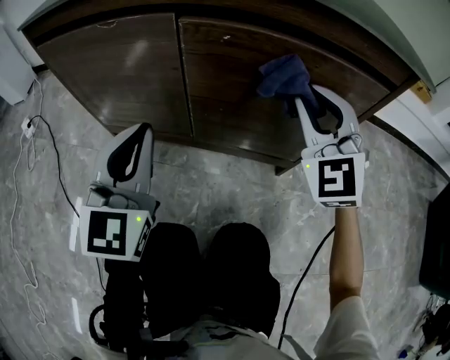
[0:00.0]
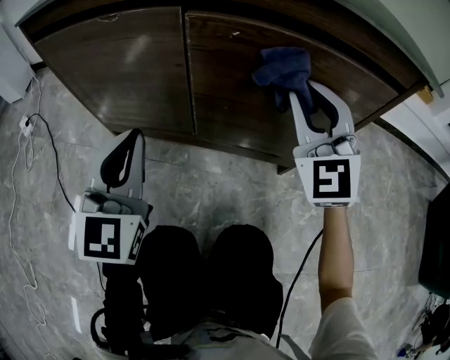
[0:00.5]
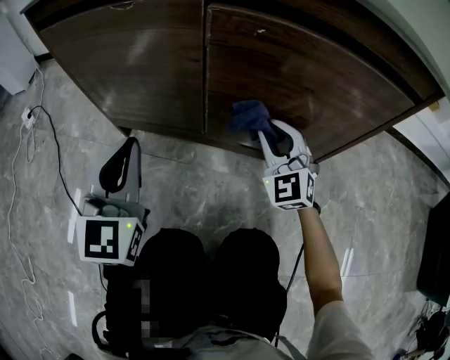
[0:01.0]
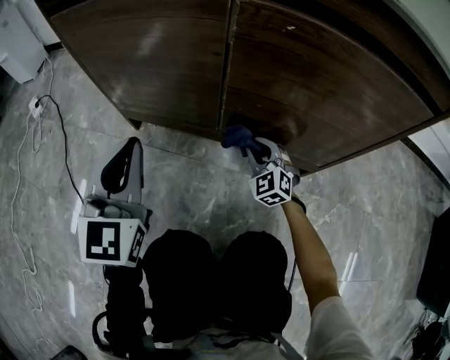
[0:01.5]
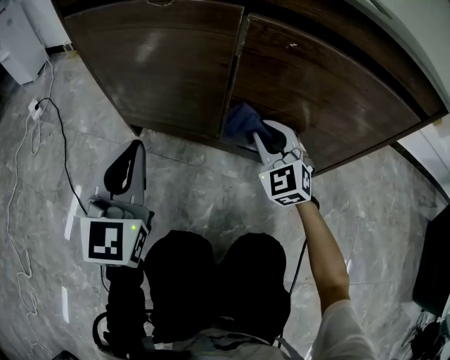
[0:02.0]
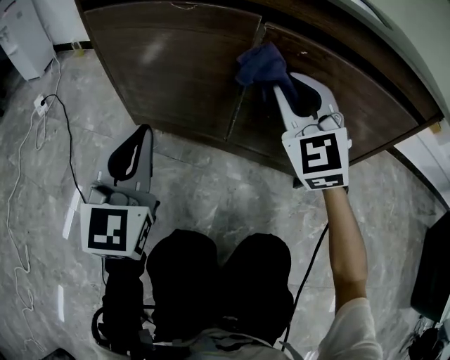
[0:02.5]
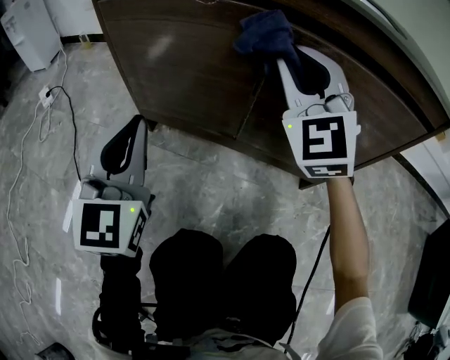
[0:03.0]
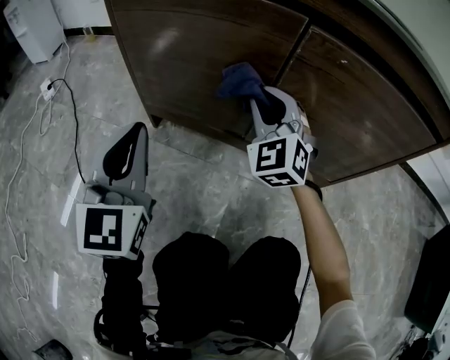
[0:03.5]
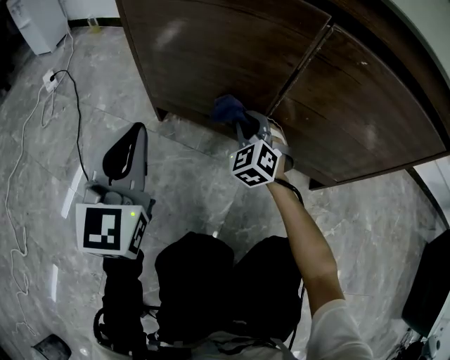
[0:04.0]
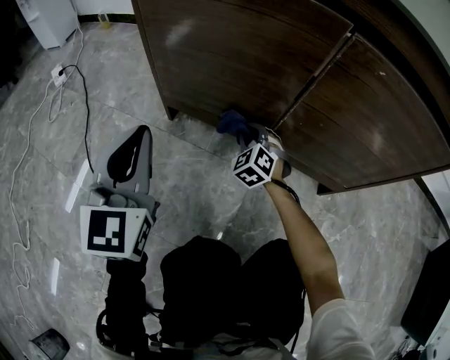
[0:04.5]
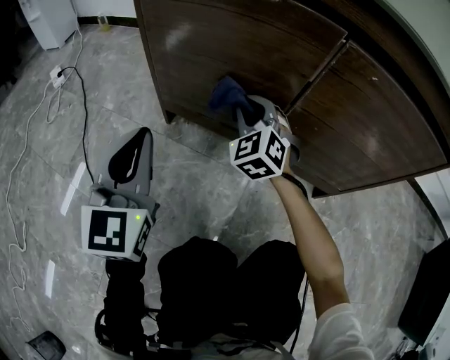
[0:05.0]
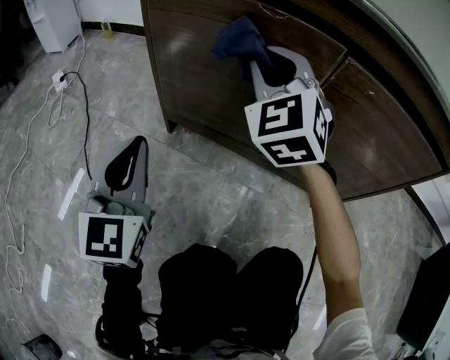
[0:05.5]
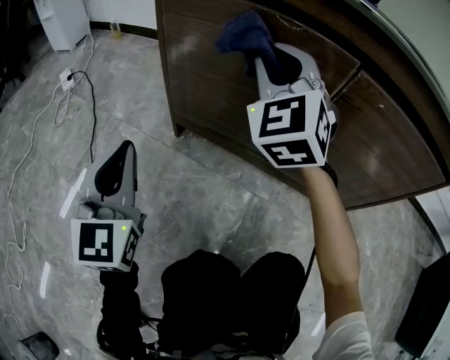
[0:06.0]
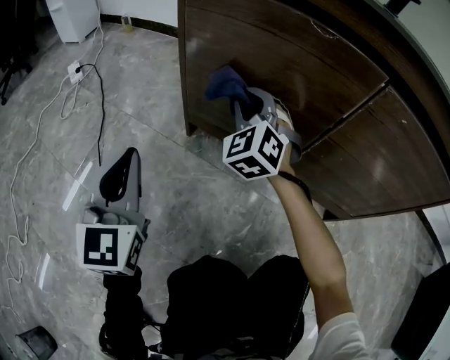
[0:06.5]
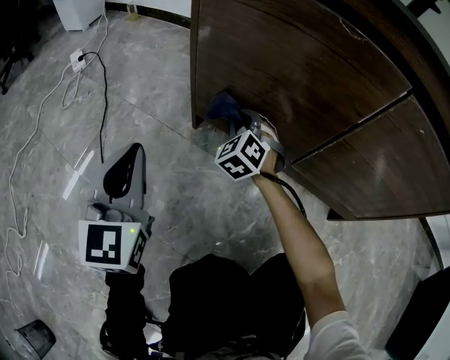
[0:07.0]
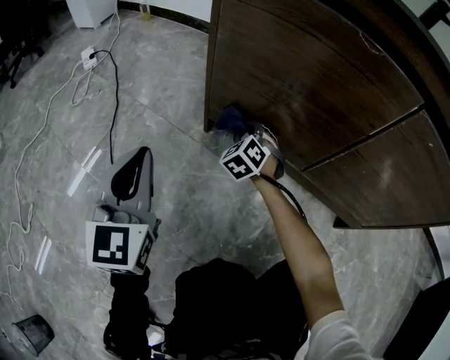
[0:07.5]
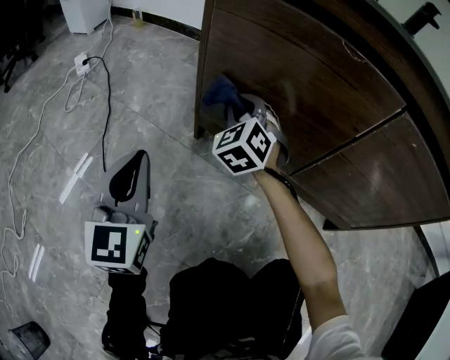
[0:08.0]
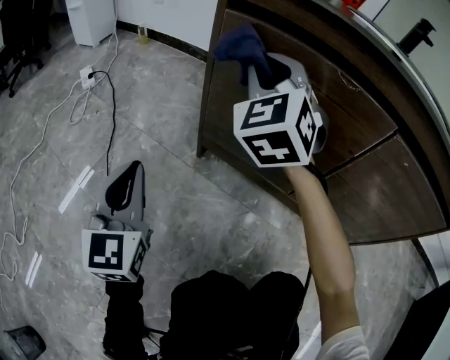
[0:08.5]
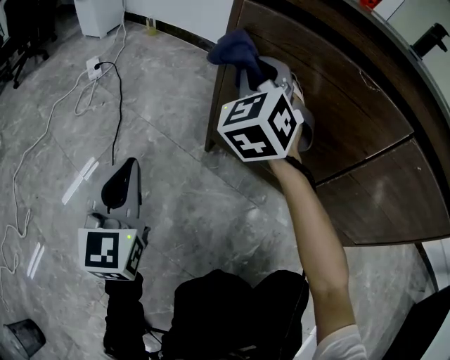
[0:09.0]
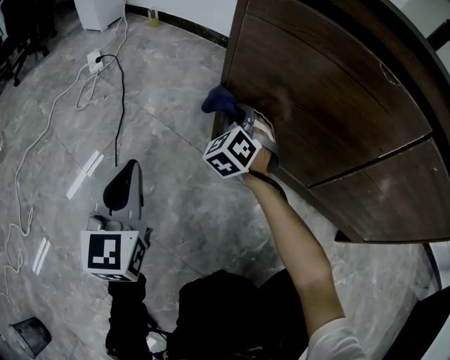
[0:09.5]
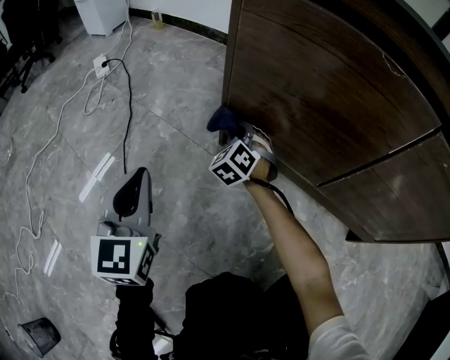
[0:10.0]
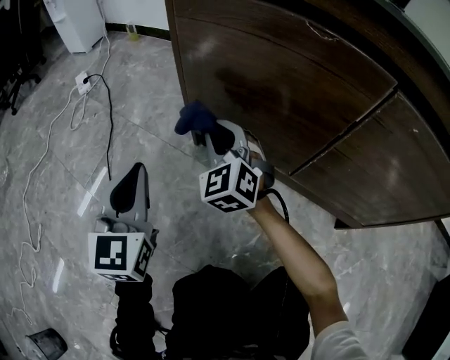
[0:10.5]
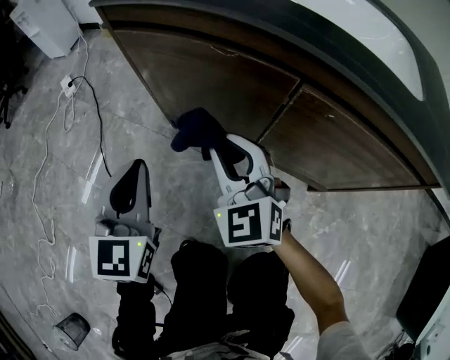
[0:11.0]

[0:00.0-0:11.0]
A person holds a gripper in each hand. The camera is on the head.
0:00.0 to 0:02.0: The right gripper travels downward and to the left by about 25 cm. Meanwhile the left gripper is displaced to the left and downward by approximately 10 cm.
0:02.0 to 0:03.5: The right gripper moves to the left, about 10 cm, and travels upward and back again, about 25 cm each way. The left gripper goes roughly 5 cm to the left.
0:03.5 to 0:05.5: The left gripper goes some 5 cm to the left; the right gripper moves to the left, approximately 10 cm, and goes downward and returns, about 25 cm each way.
0:05.5 to 0:07.5: The right gripper heads downward, covering approximately 35 cm, and changes its angle by some 30 degrees; the left gripper is displaced to the left and downward by approximately 10 cm.
0:07.5 to 0:09.0: The right gripper is displaced upward by some 30 cm, and swivels approximately 30 degrees.
0:09.0 to 0:11.0: The left gripper travels to the right and upward by approximately 20 cm, while the right gripper travels backward and to the right by roughly 25 cm, moves roughly 30 cm downward and comes back, and swivels about 20 degrees.

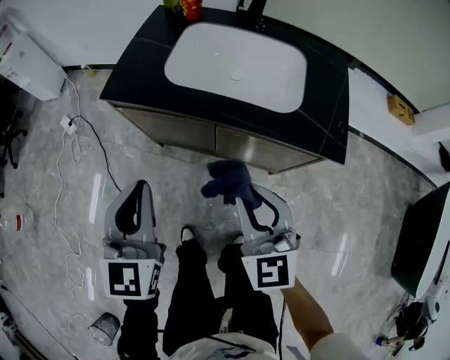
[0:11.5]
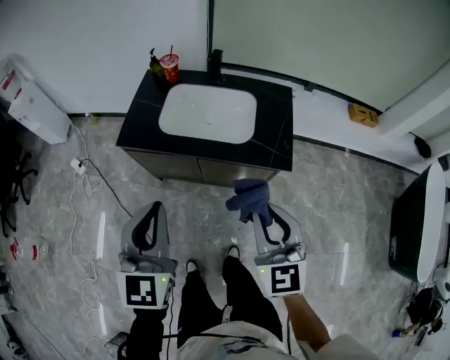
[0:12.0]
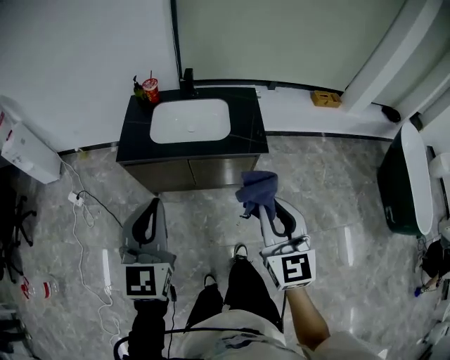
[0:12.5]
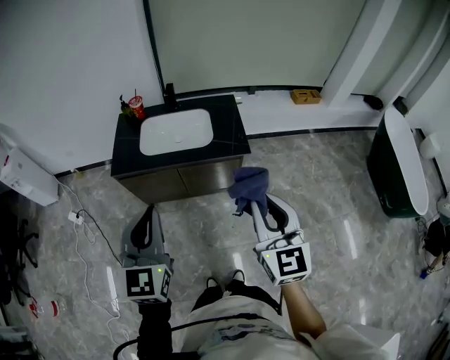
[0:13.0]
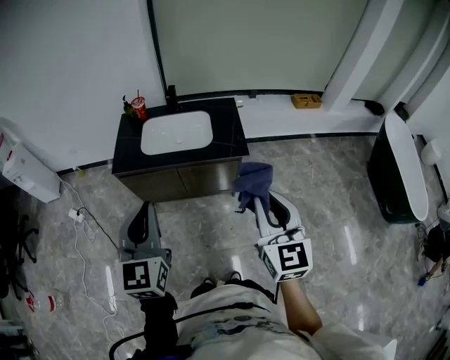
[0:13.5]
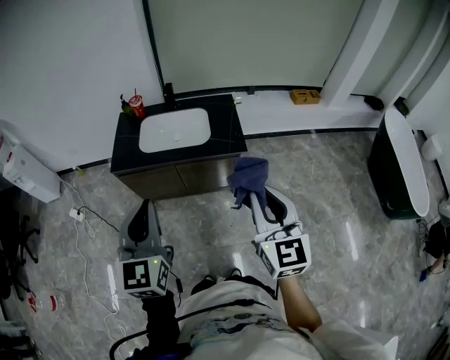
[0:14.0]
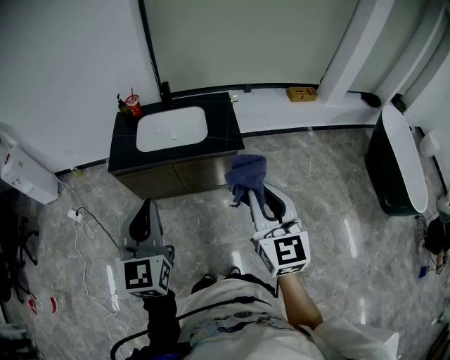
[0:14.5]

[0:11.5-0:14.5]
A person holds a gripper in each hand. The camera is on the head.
0:11.5 to 0:13.0: The right gripper moves upward, backward and to the right, approximately 40 cm, and swivels roughly 30 degrees; the left gripper moves upward and backward, approximately 35 cm, and turns by some 20 degrees.
0:13.0 to 0:14.5: The grippers stay close to where they were, moving slightly.

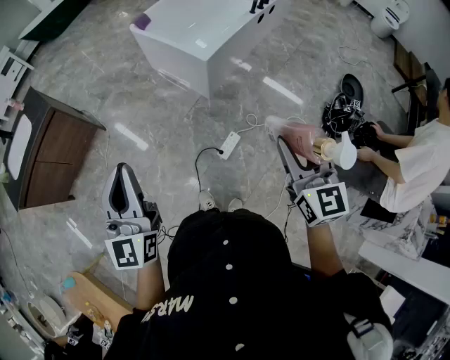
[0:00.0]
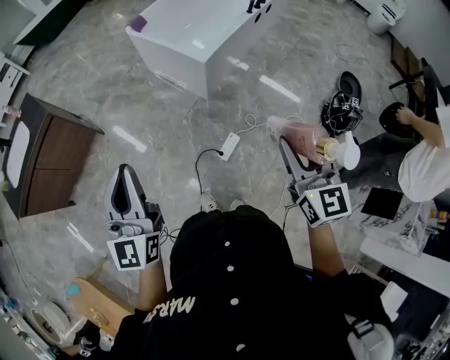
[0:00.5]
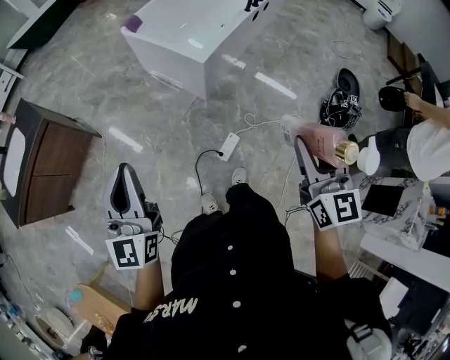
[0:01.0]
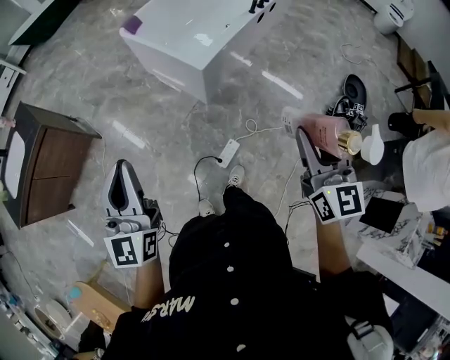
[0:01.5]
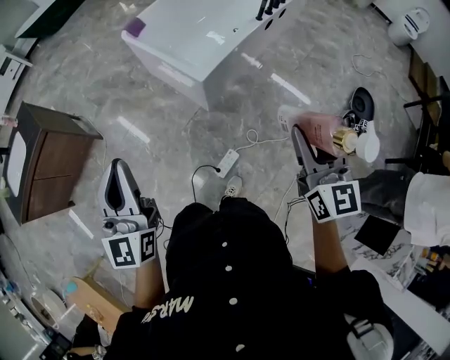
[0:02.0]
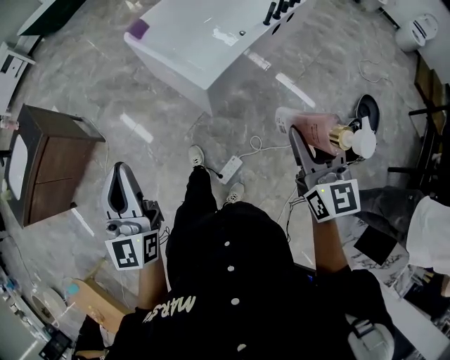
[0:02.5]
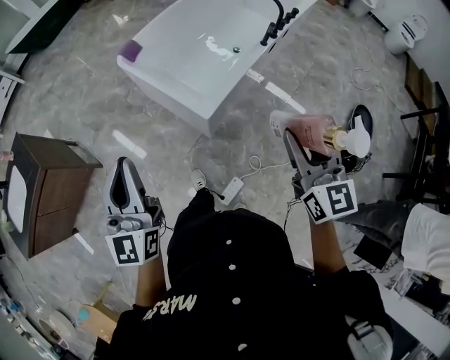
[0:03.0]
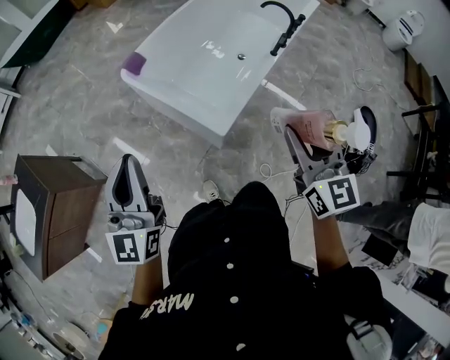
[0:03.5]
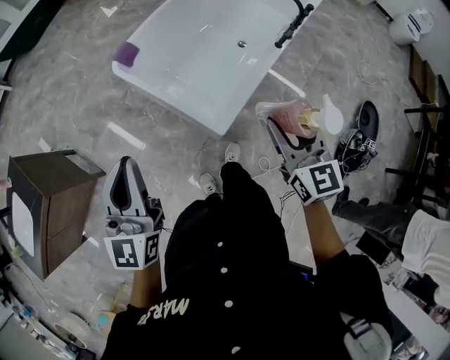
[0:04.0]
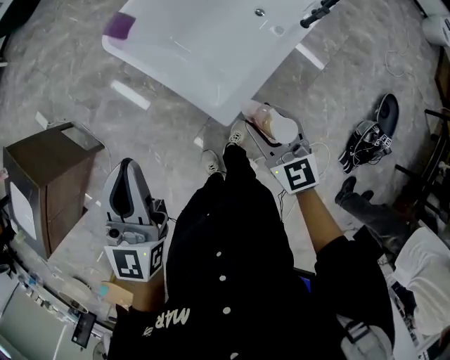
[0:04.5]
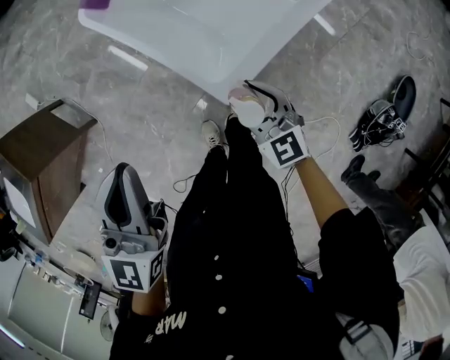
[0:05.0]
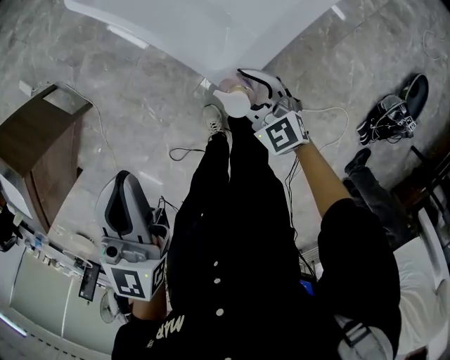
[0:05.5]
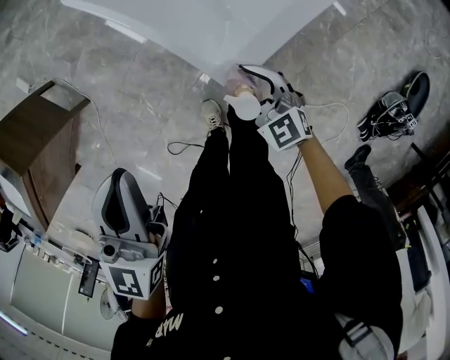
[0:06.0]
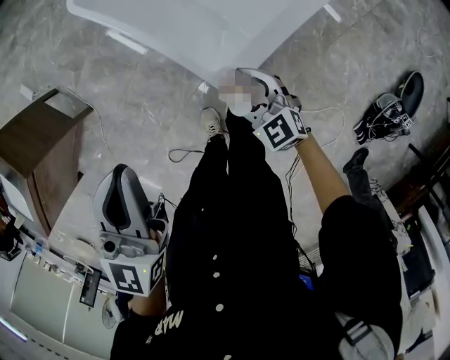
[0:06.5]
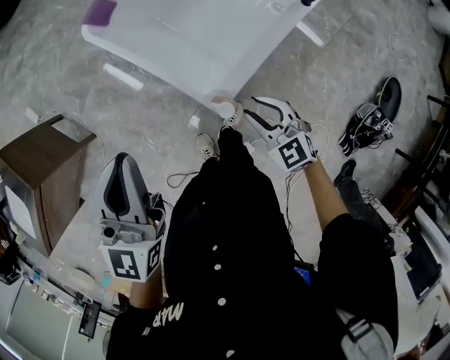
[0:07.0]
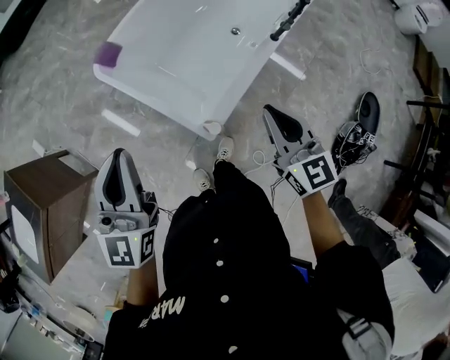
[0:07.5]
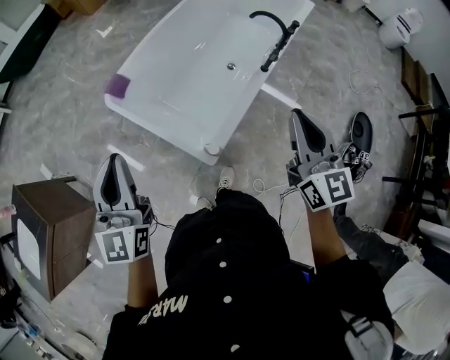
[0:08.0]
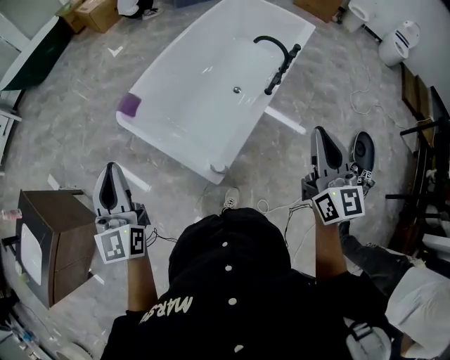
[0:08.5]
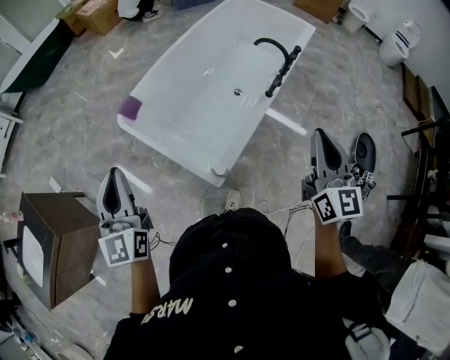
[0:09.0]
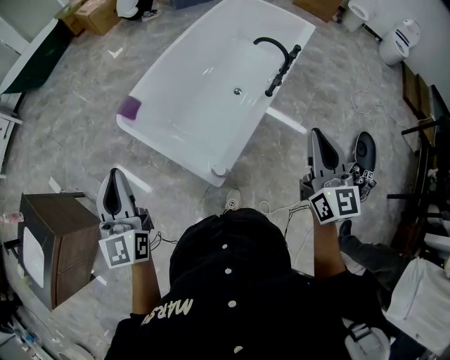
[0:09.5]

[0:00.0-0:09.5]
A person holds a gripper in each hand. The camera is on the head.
0:00.0 to 0:02.0: Both grippers travel together forward and to the right, roughly 25 cm.
0:02.0 to 0:04.0: Both grippers move forward, roughly 35 cm.
0:04.0 to 0:05.5: The right gripper travels downward by about 40 cm, and rotates some 40 degrees. The left gripper is displaced downward by about 20 cm, and turns by approximately 20 degrees.
0:05.5 to 0:07.5: The right gripper moves upward, roughly 35 cm, swivels some 30 degrees, and closes up, while the left gripper shifts roughly 15 cm upward, and rotates approximately 20 degrees.
0:07.5 to 0:09.5: The left gripper travels to the left by some 5 cm. Meanwhile the right gripper travels upward and to the right by approximately 15 cm, and changes its angle by approximately 20 degrees.

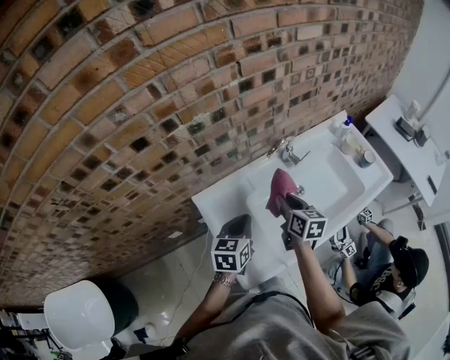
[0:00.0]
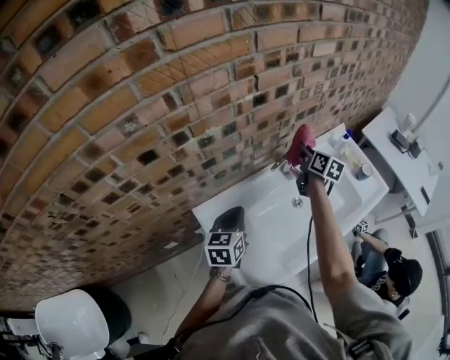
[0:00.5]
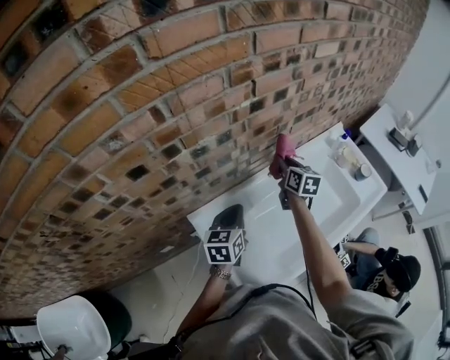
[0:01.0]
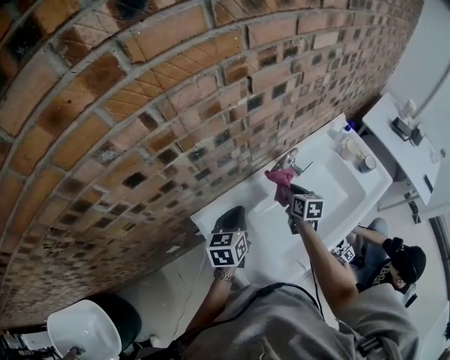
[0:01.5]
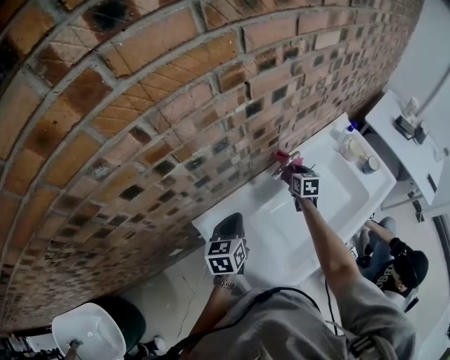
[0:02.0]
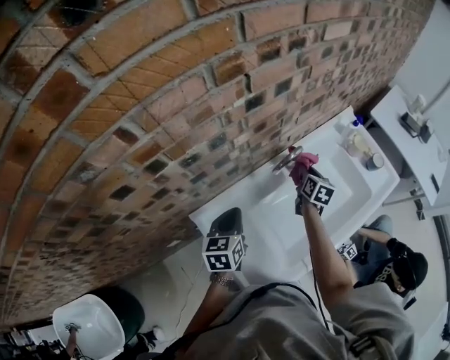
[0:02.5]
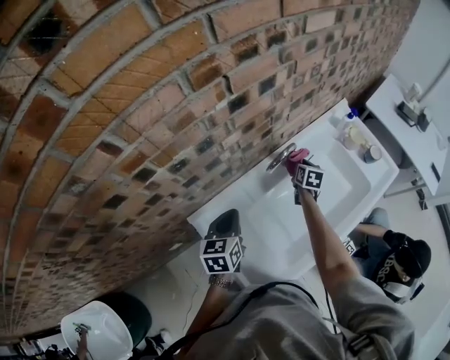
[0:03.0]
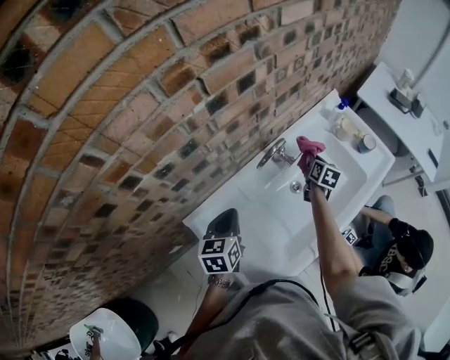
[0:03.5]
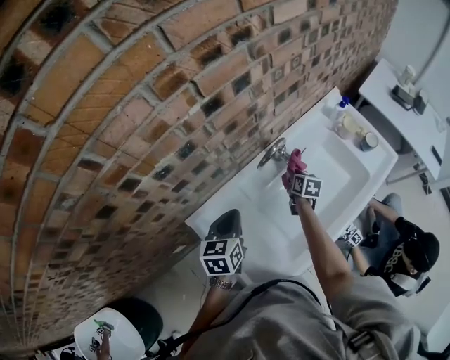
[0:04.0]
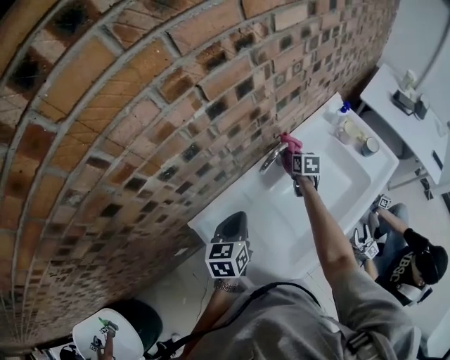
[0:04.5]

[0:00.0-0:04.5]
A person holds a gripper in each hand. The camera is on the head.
0:00.0 to 0:02.0: The right gripper moves forward and backward over some 25 cm, changing direction 2 times. Meanwhile the left gripper shifts about 15 cm forward and to the left.
0:02.0 to 0:04.5: The left gripper shifts about 5 cm to the right. Meanwhile the right gripper travels to the right and back again, approximately 15 cm each way.
